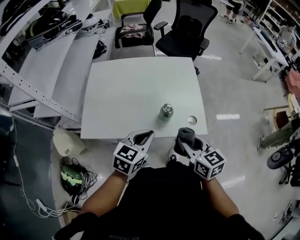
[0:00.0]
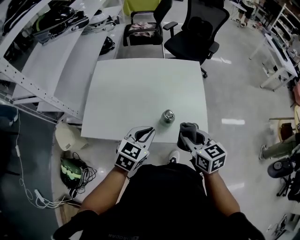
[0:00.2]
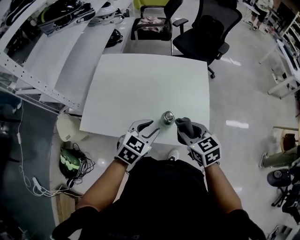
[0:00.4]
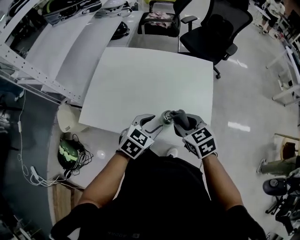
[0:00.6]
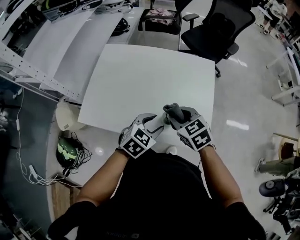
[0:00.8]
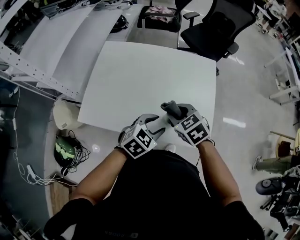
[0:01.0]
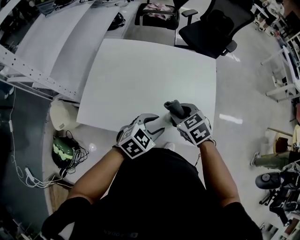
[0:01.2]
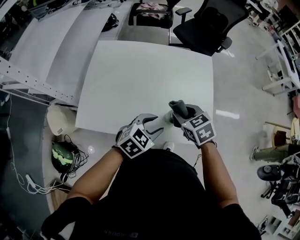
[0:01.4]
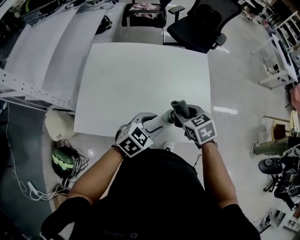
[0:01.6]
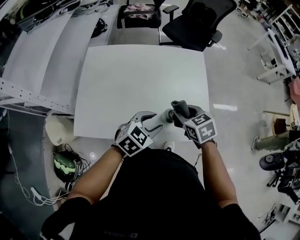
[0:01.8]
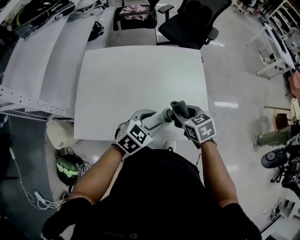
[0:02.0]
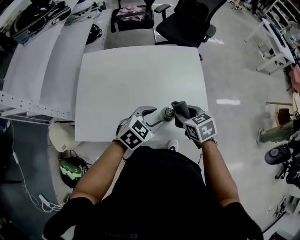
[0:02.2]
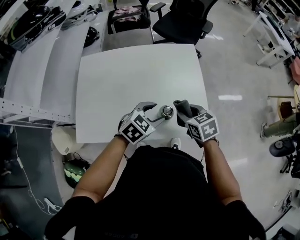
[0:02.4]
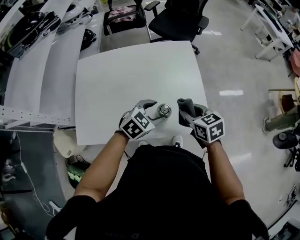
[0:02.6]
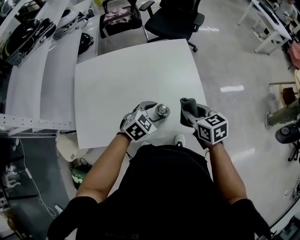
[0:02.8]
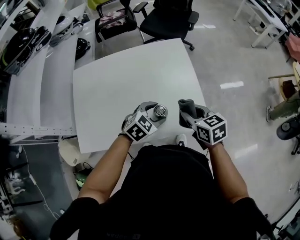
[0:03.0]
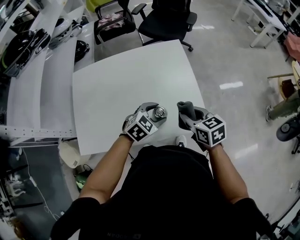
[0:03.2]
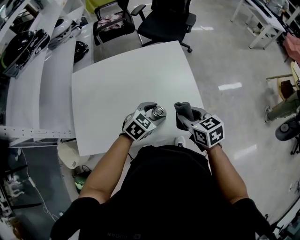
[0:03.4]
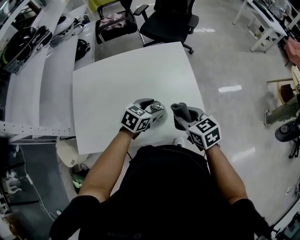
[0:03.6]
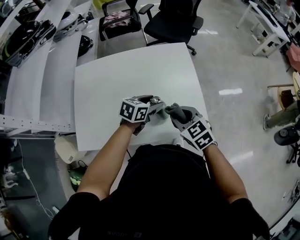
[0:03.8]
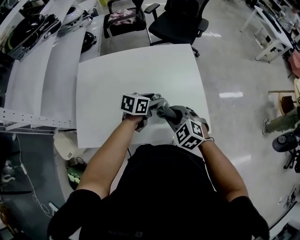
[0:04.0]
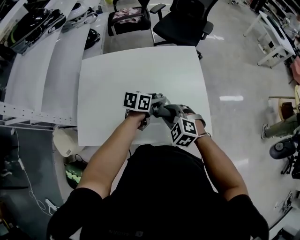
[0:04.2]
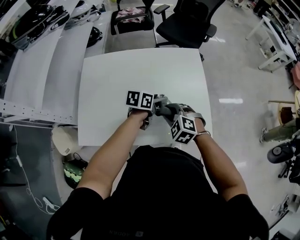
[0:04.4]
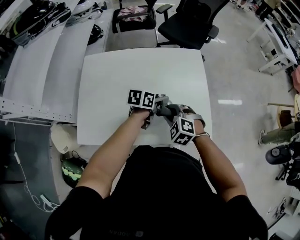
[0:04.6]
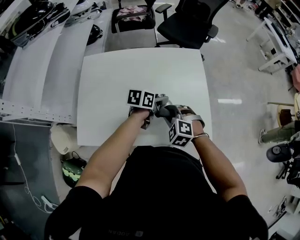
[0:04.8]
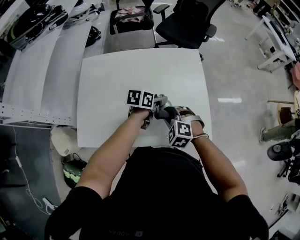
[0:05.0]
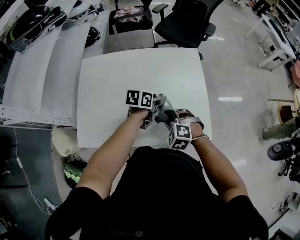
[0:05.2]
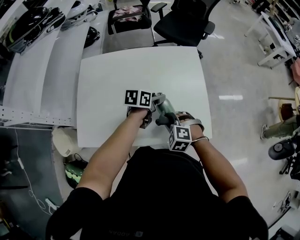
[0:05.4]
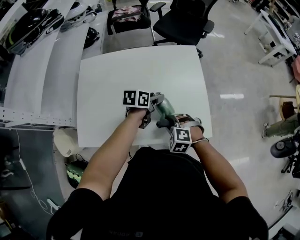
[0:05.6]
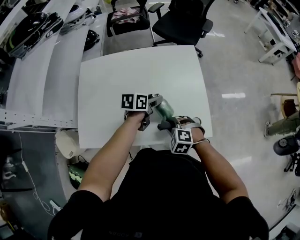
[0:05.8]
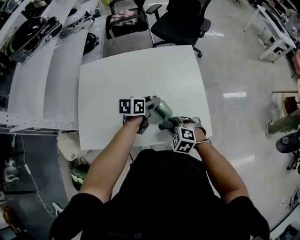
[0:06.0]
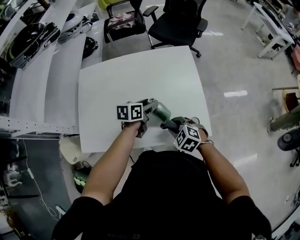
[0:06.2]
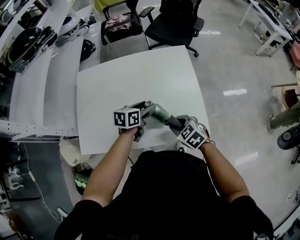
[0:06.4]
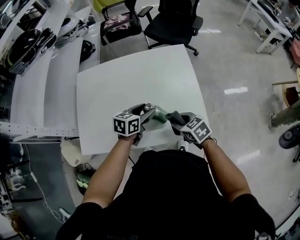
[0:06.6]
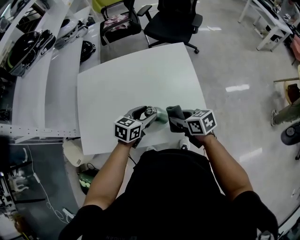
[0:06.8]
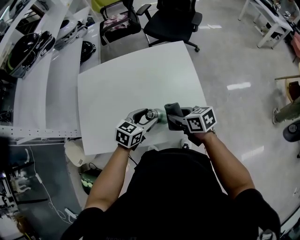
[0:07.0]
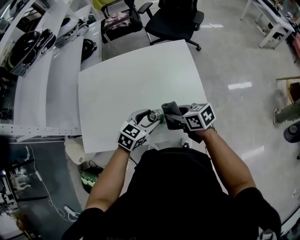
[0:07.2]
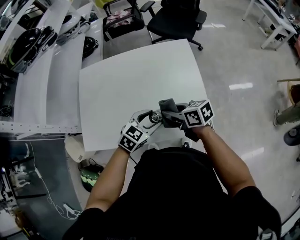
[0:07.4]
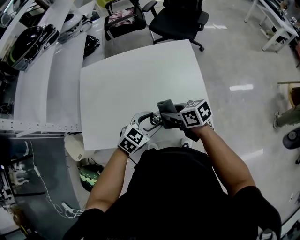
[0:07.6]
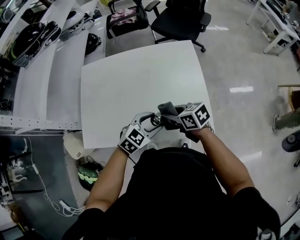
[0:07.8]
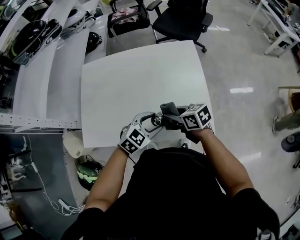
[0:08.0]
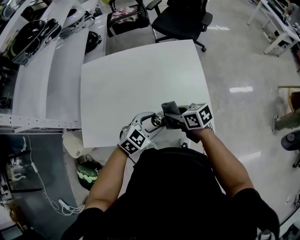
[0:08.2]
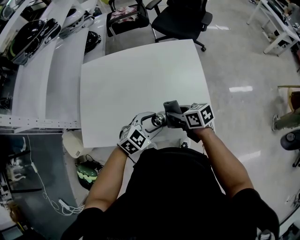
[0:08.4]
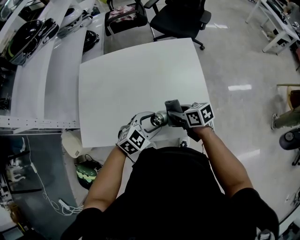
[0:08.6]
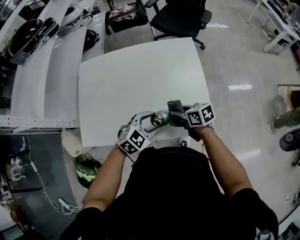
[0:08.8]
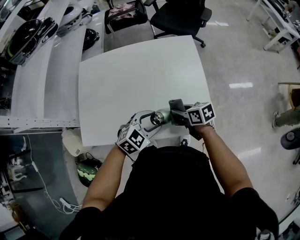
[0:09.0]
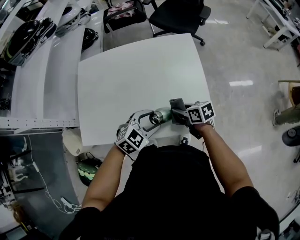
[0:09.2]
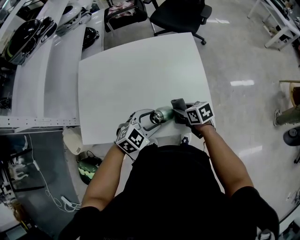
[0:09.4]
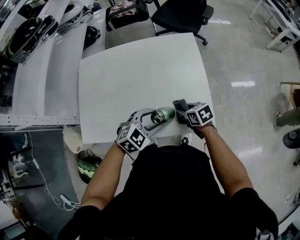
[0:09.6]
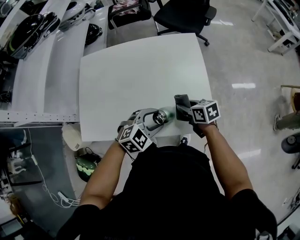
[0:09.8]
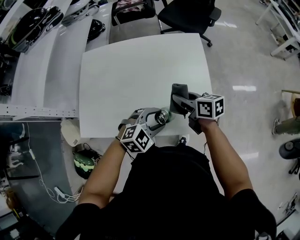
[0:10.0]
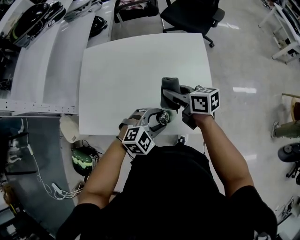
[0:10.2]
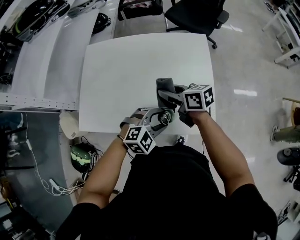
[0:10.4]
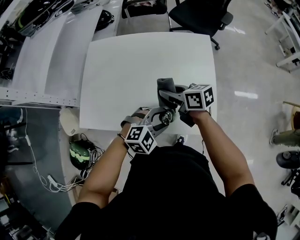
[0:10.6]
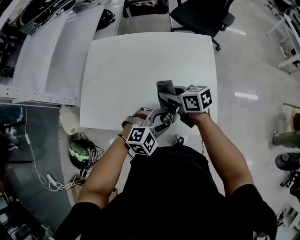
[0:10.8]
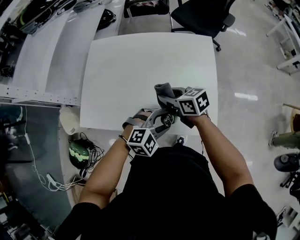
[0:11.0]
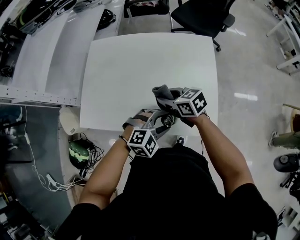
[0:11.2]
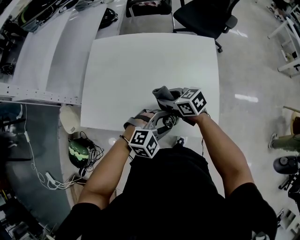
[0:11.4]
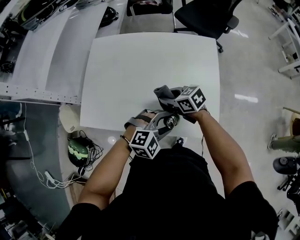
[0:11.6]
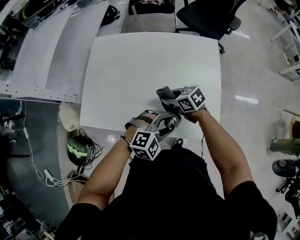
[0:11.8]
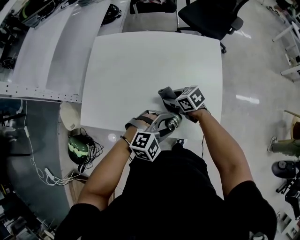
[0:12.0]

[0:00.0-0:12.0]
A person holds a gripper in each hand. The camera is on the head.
0:00.0 to 0:01.6: The right gripper is displaced forward and downward by approximately 20 cm, and rotates some 30 degrees. Meanwhile the left gripper travels forward and downward by approximately 10 cm, and opens up.
0:01.6 to 0:03.0: The left gripper travels to the right and forward by some 10 cm, while the right gripper heads to the right, covering some 10 cm, and swivels approximately 30 degrees.
0:03.0 to 0:04.4: The left gripper goes approximately 10 cm forward and to the left, and rotates around the line of its fingers by roughly 60 degrees, counterclockwise from behind. Meanwhile the right gripper is displaced to the left and downward by approximately 15 cm, and rotates around the line of its fingers by approximately 60 degrees, counterclockwise from behind.
0:04.4 to 0:06.0: The right gripper goes some 10 cm downward and backward.
0:06.0 to 0:07.6: The right gripper shifts about 10 cm upward and forward, and rotates around the line of its fingers by roughly 60 degrees, clockwise from behind. Meanwhile the left gripper heads backward, covering some 10 cm, and rolls clockwise, seen from behind, by about 50 degrees.
0:07.6 to 0:09.0: The right gripper travels downward by about 10 cm.
0:09.0 to 0:10.4: The right gripper goes some 15 cm upward, to the left and forward.
0:10.4 to 0:12.0: The right gripper goes roughly 10 cm downward, and turns by about 30 degrees.

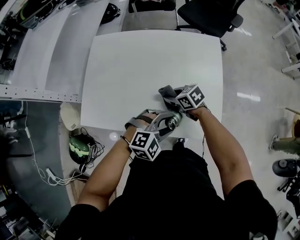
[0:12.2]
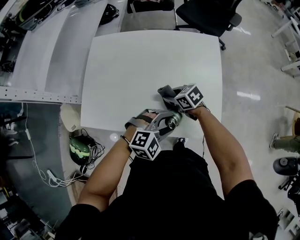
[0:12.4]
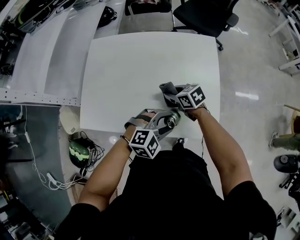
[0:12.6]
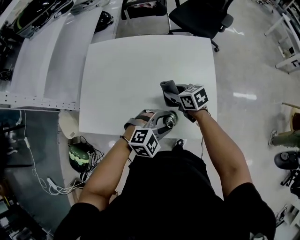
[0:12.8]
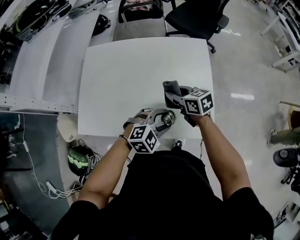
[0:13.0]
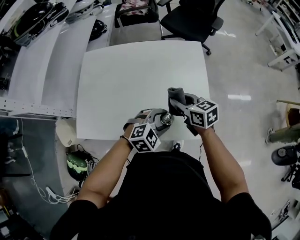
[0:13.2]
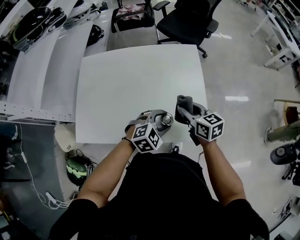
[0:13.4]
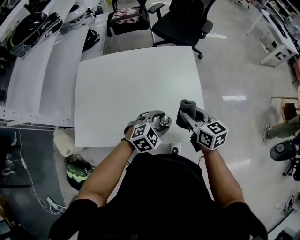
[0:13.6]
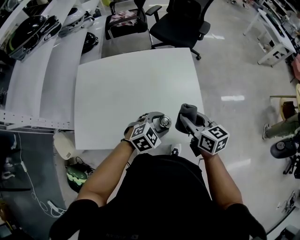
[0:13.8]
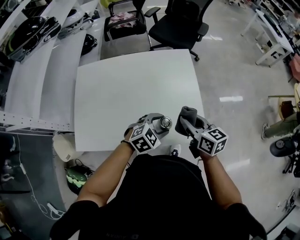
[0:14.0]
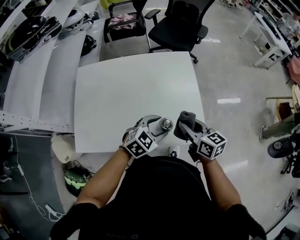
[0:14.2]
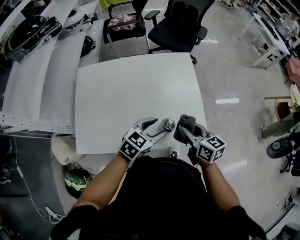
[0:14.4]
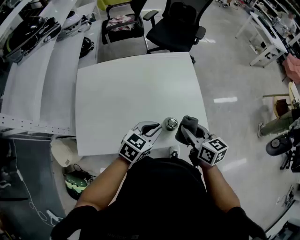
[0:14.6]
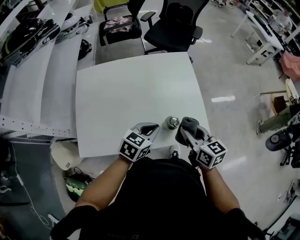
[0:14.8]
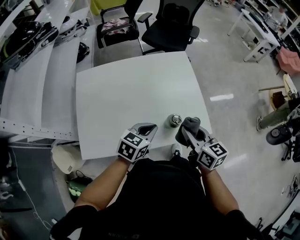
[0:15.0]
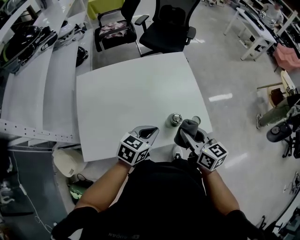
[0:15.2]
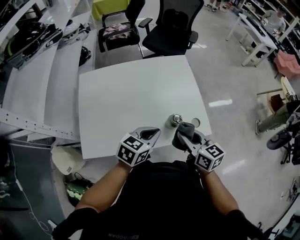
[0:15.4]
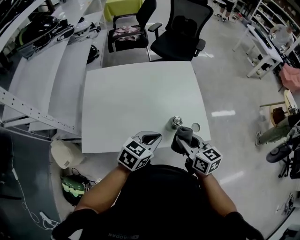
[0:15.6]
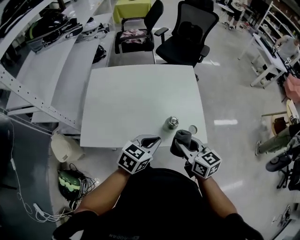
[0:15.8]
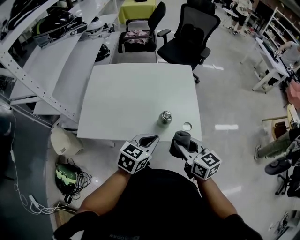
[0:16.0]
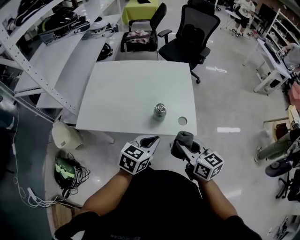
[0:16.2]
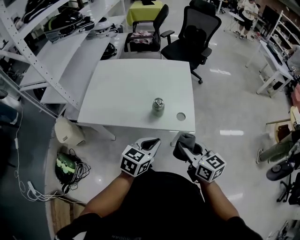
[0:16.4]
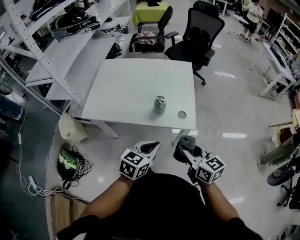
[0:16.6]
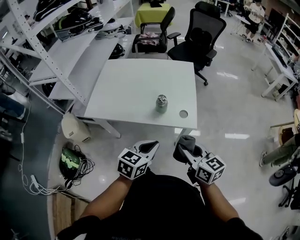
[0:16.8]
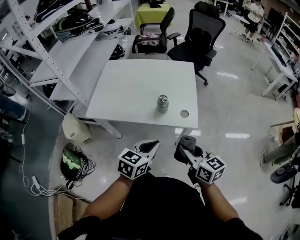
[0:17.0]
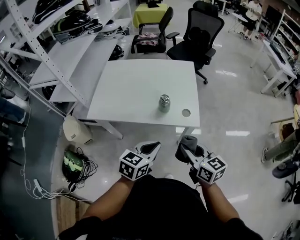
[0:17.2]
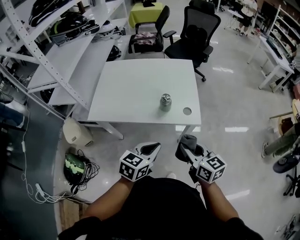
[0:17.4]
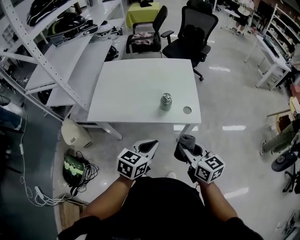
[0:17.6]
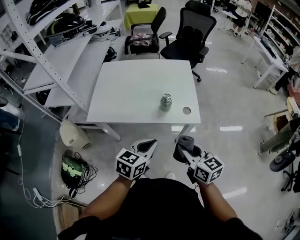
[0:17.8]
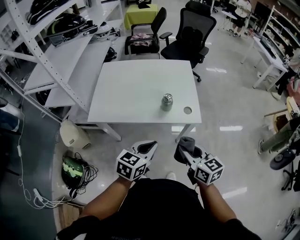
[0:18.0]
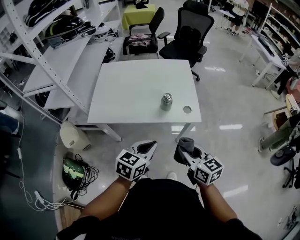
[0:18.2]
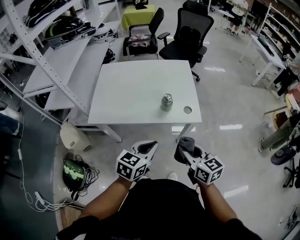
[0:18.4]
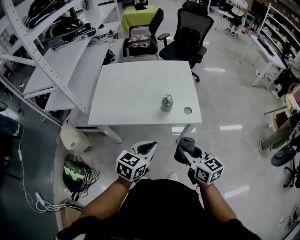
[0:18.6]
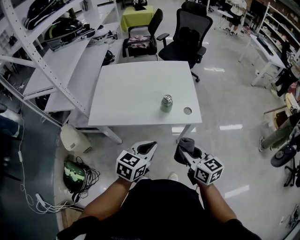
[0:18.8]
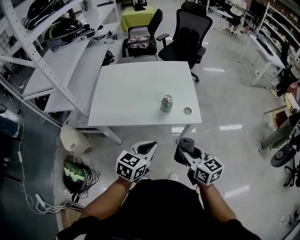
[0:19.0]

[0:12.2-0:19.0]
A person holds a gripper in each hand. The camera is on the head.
0:12.2 to 0:13.6: The right gripper goes some 15 cm upward, and swivels some 40 degrees.
0:13.6 to 0:15.0: The left gripper heads to the left, covering approximately 10 cm, rotates roughly 30 degrees, and closes its fingers. The right gripper is displaced backward by about 10 cm.
0:15.0 to 0:16.2: Both grippers move backward and to the right, approximately 15 cm.
0:16.2 to 0:17.6: Both grippers travel together backward, approximately 10 cm.
0:17.6 to 0:19.0: The grippers make only small movements.

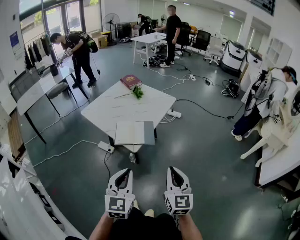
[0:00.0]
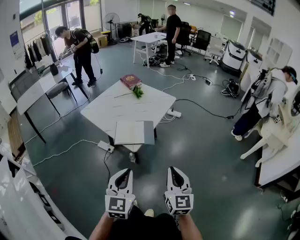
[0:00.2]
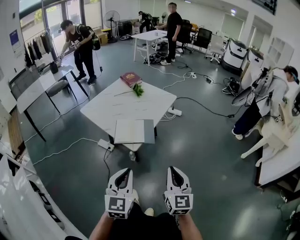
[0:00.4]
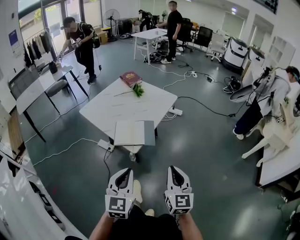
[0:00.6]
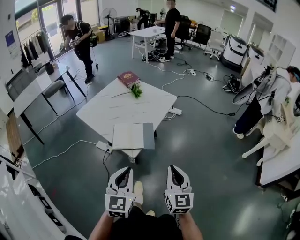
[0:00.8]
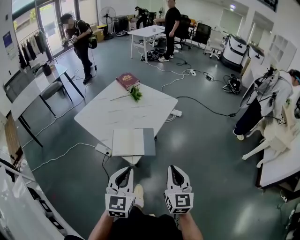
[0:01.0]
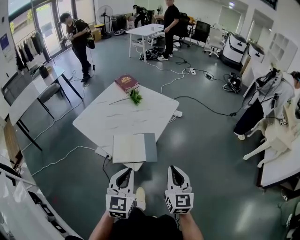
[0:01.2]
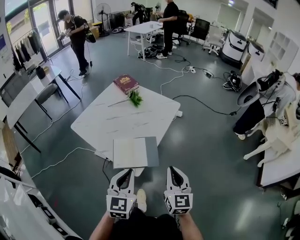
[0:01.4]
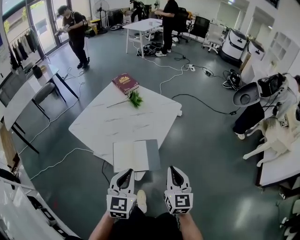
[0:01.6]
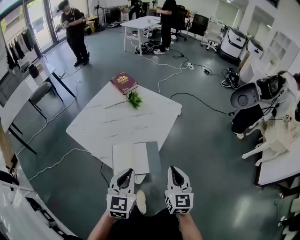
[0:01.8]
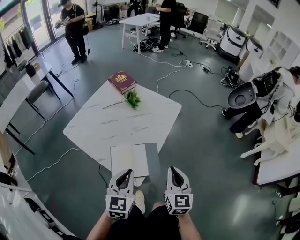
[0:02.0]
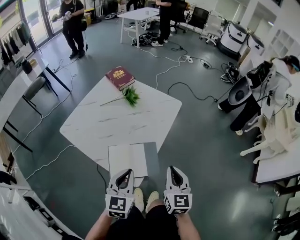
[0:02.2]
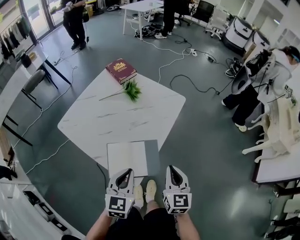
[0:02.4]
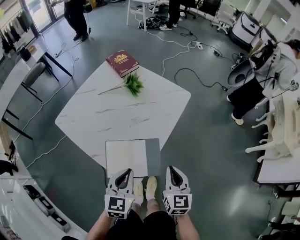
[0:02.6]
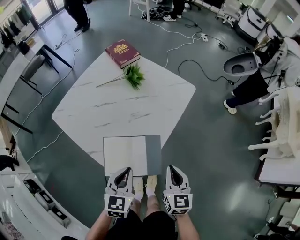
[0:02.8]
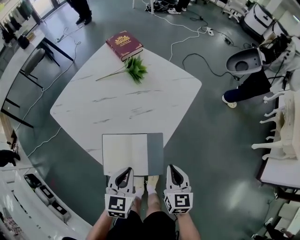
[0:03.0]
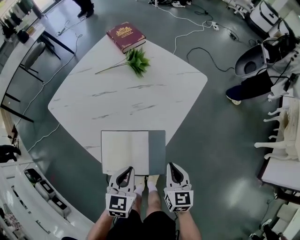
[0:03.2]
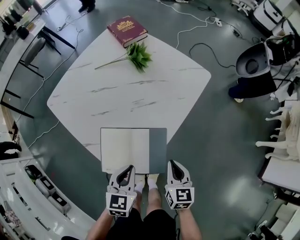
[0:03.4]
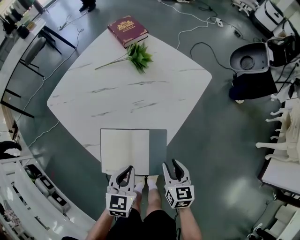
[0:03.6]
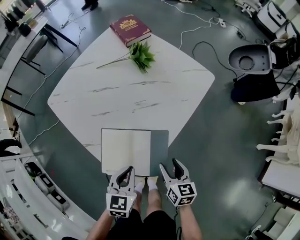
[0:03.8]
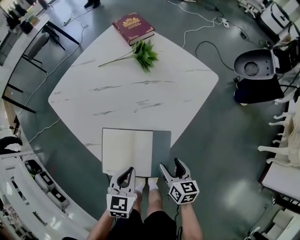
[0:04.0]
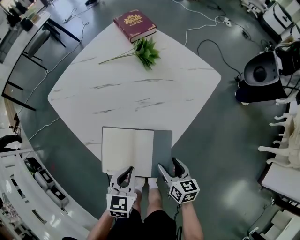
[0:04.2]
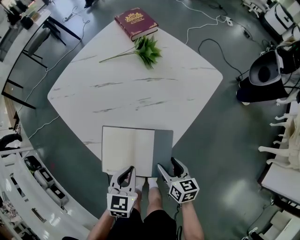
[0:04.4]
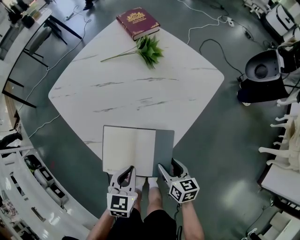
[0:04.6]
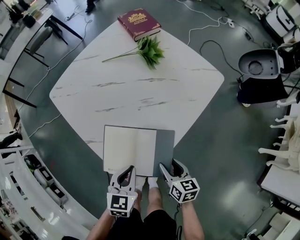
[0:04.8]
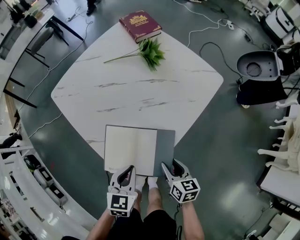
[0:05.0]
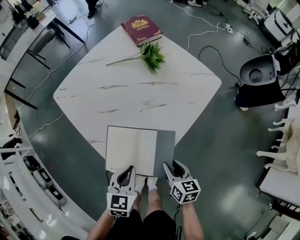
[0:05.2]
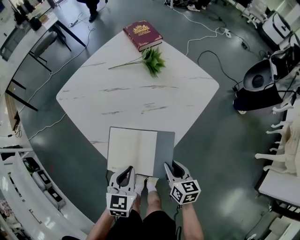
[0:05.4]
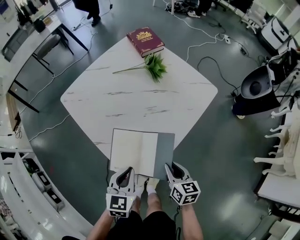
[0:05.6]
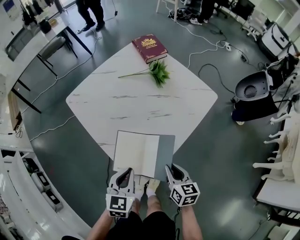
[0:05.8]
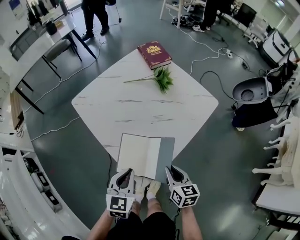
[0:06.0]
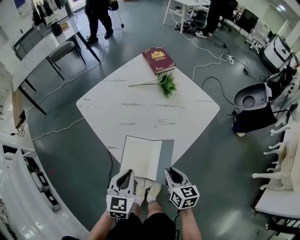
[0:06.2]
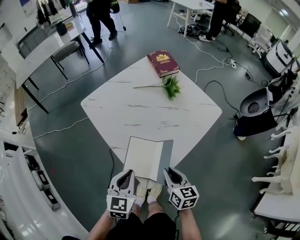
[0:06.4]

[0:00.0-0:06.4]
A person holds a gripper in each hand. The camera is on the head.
0:00.0 to 0:01.6: The grippers both shift forward by approximately 30 cm.
0:01.6 to 0:03.2: Both grippers travel together downward and forward, about 25 cm. The left gripper swivels approximately 20 degrees; the right gripper changes its angle by some 20 degrees.
0:03.2 to 0:04.8: The right gripper goes roughly 10 cm downward, turns by some 30 degrees, and opens up.
0:04.8 to 0:06.4: Both grippers move upward and to the left, roughly 15 cm. The right gripper closes up.
